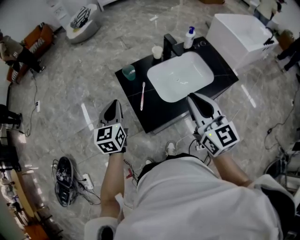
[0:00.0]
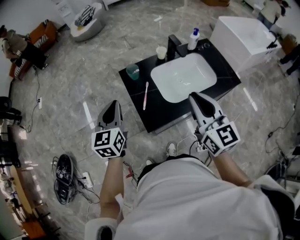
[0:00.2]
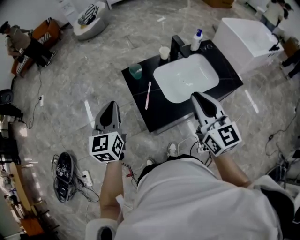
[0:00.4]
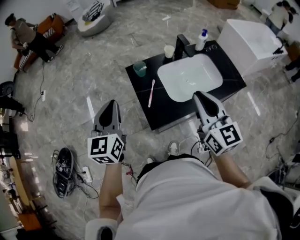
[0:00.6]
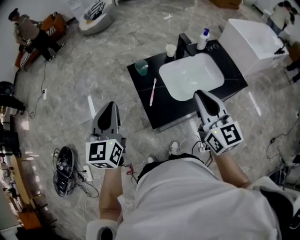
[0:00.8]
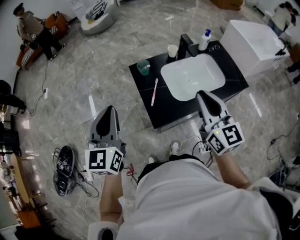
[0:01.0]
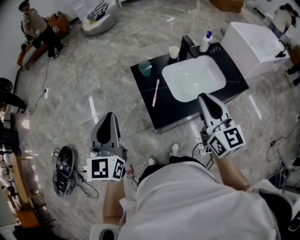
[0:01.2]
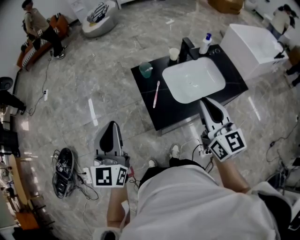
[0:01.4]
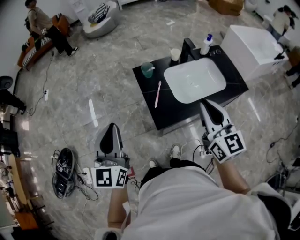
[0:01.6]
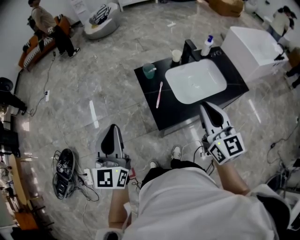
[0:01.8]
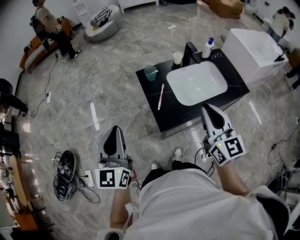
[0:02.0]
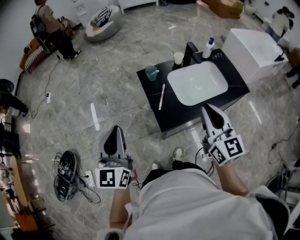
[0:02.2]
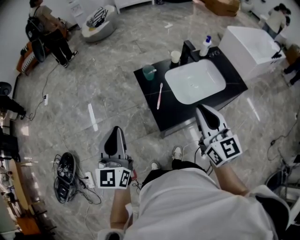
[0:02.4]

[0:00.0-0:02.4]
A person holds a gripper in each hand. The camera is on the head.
0:00.0 to 0:01.2: The left gripper shifts some 15 cm upward, backward and to the left.
0:01.2 to 0:02.4: The right gripper moves roughly 5 cm. The left gripper moves roughly 5 cm.

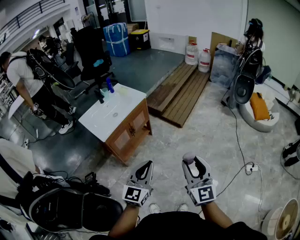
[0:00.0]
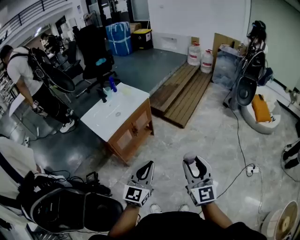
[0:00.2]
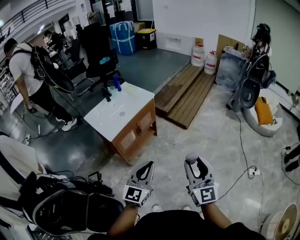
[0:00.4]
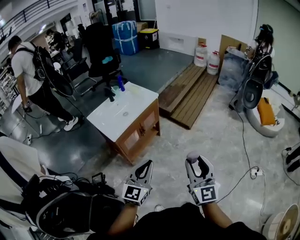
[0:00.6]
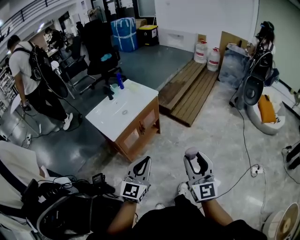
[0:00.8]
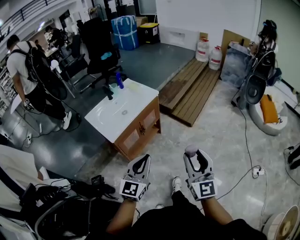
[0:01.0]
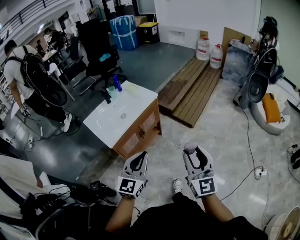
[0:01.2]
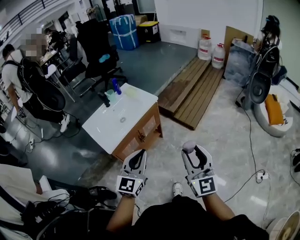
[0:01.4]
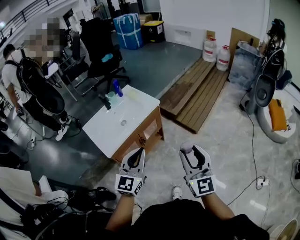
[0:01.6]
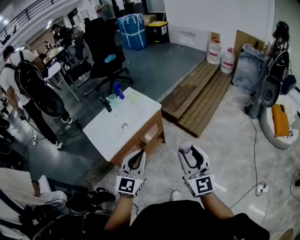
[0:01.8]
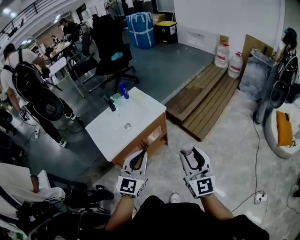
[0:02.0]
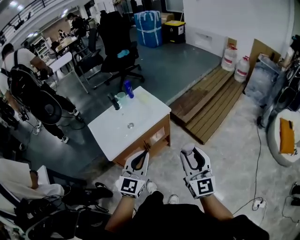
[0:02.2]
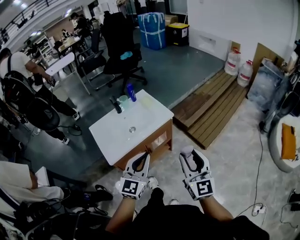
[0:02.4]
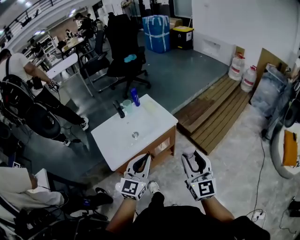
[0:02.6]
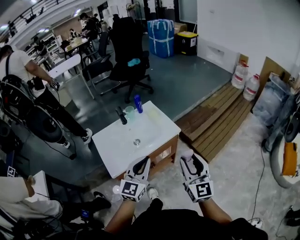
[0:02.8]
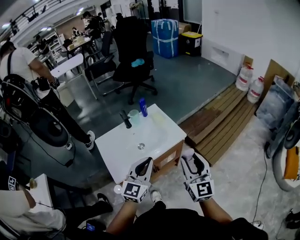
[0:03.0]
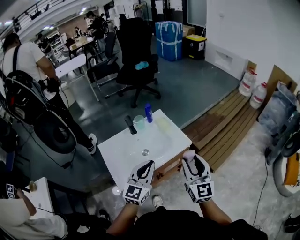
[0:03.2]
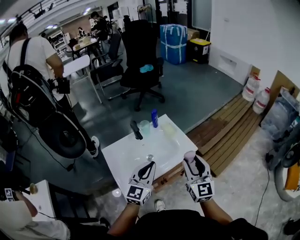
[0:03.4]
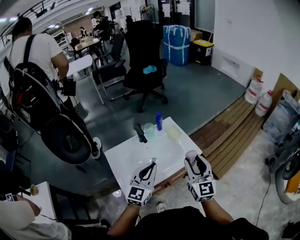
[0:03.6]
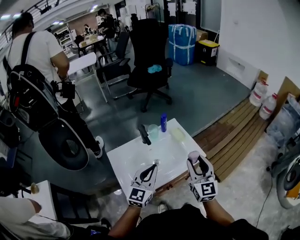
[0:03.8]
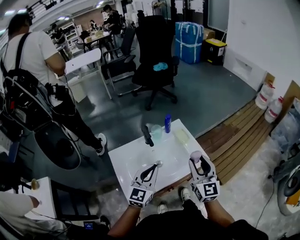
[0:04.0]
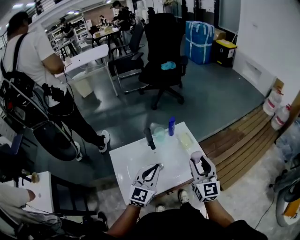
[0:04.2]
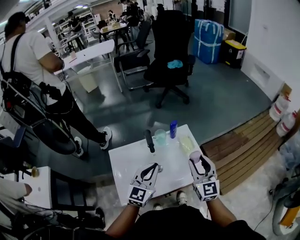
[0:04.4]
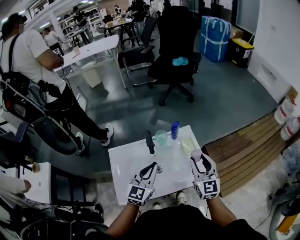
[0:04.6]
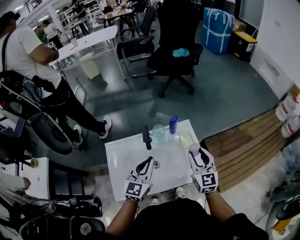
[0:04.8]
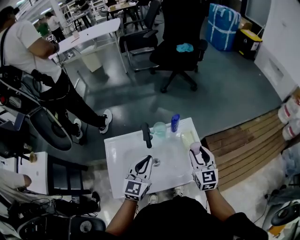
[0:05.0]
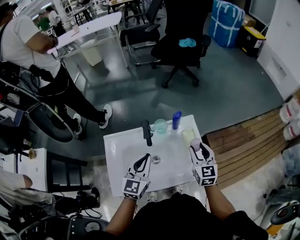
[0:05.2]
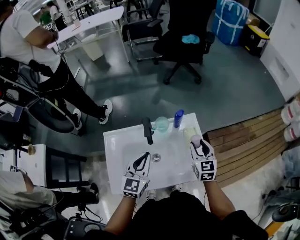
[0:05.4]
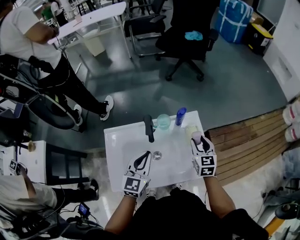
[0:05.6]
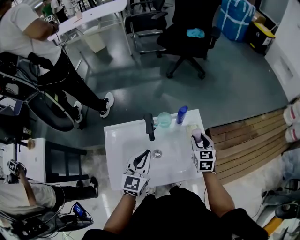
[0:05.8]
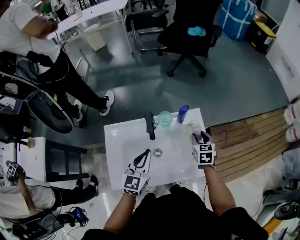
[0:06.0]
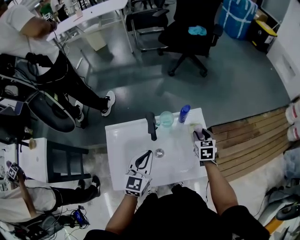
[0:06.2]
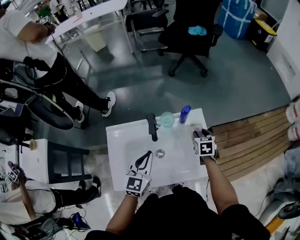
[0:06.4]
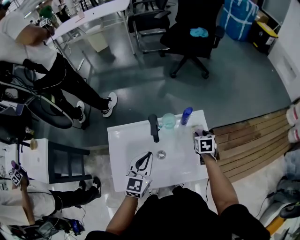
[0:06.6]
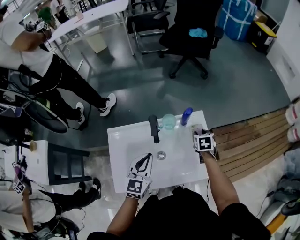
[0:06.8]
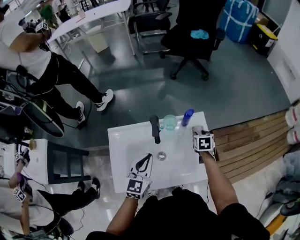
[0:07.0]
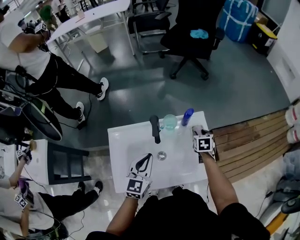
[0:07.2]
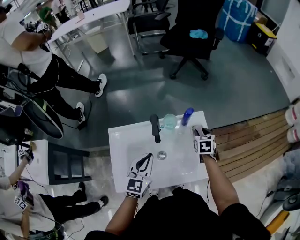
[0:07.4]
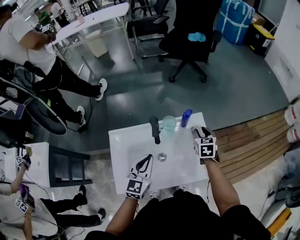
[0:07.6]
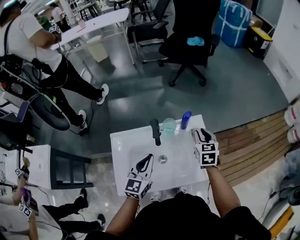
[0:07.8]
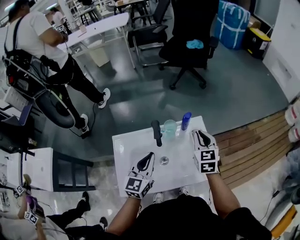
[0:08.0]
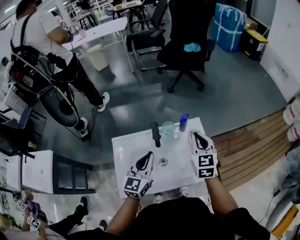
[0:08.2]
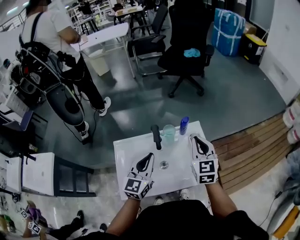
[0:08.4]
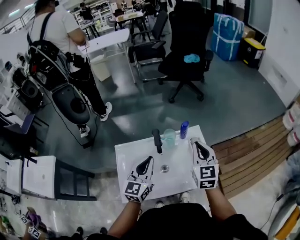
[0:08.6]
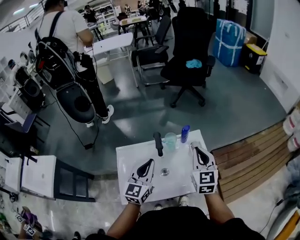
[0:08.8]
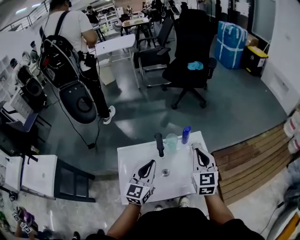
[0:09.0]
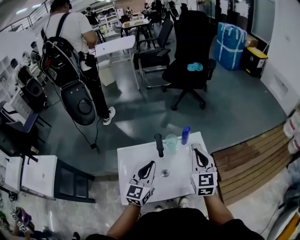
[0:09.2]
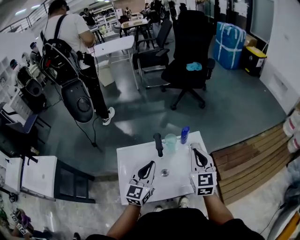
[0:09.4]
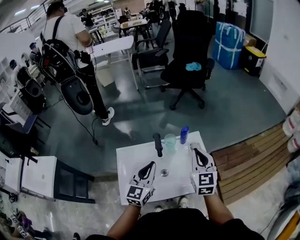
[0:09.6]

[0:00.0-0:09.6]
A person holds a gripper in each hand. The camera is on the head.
0:00.0 to 0:01.6: The grippers both shift forward by some 25 cm.
0:01.6 to 0:03.2: The two grippers go roughly 30 cm forward and to the left.
0:03.2 to 0:04.8: The grippers both shift forward by about 25 cm. The right gripper swivels roughly 20 degrees. Meanwhile the left gripper changes its angle by approximately 20 degrees.
0:04.8 to 0:06.4: The right gripper shifts some 20 cm downward and forward, and angles its fingers downward, by roughly 40 degrees; the left gripper moves downward, approximately 5 cm.
0:06.4 to 0:08.0: The right gripper is displaced upward by some 15 cm, swivels about 20 degrees, and closes. The left gripper shifts roughly 5 cm upward.
0:08.0 to 0:09.6: The right gripper goes about 10 cm upward and backward.

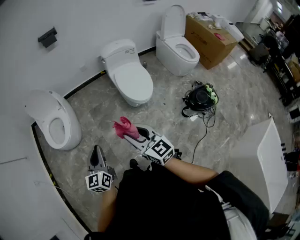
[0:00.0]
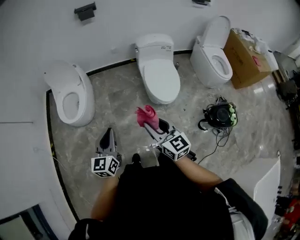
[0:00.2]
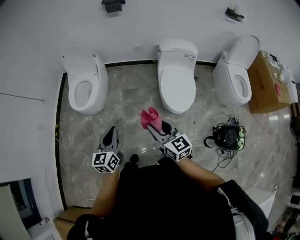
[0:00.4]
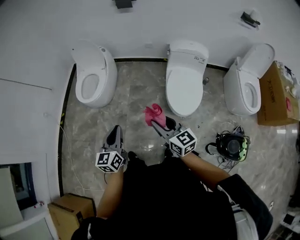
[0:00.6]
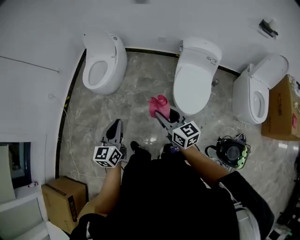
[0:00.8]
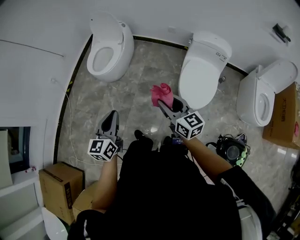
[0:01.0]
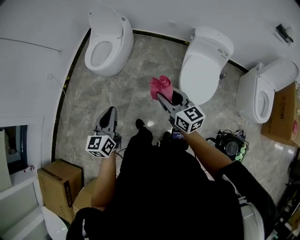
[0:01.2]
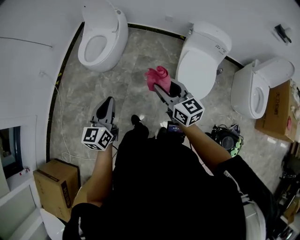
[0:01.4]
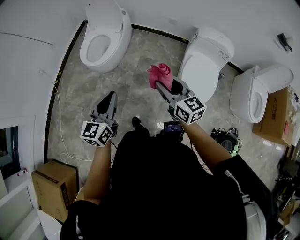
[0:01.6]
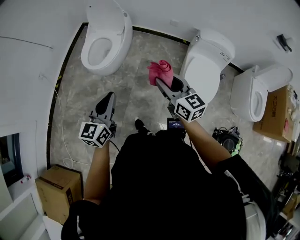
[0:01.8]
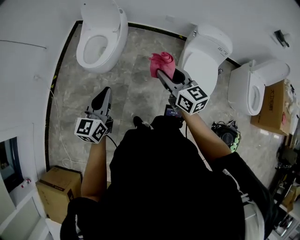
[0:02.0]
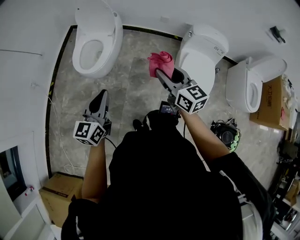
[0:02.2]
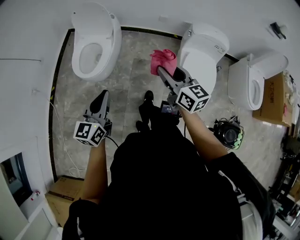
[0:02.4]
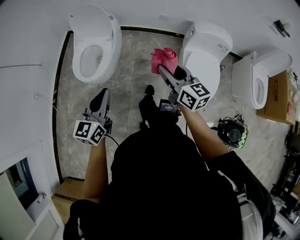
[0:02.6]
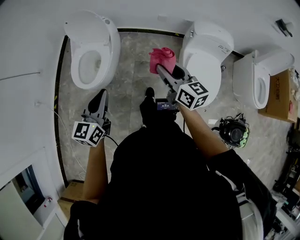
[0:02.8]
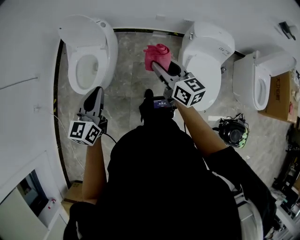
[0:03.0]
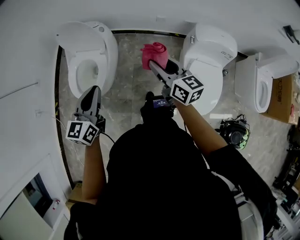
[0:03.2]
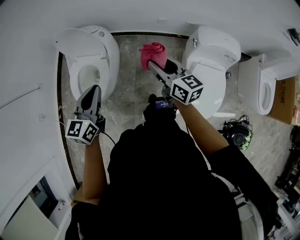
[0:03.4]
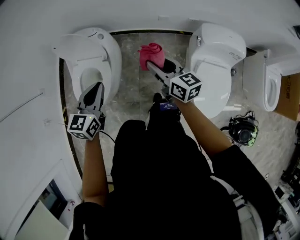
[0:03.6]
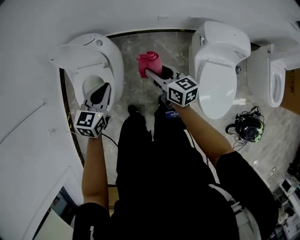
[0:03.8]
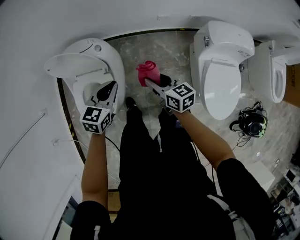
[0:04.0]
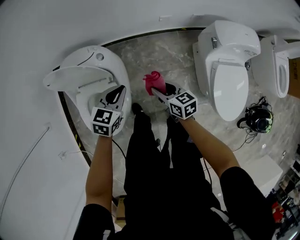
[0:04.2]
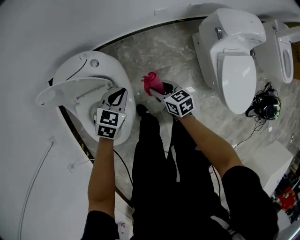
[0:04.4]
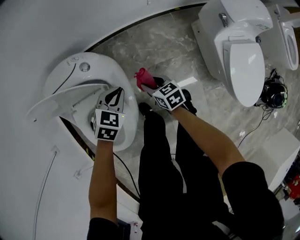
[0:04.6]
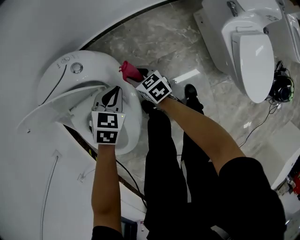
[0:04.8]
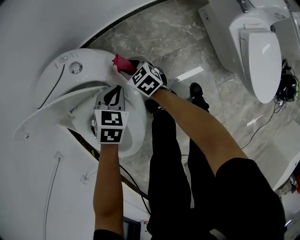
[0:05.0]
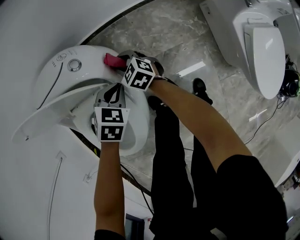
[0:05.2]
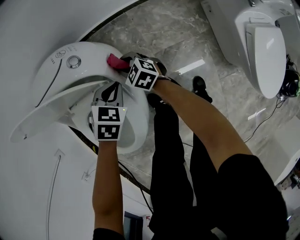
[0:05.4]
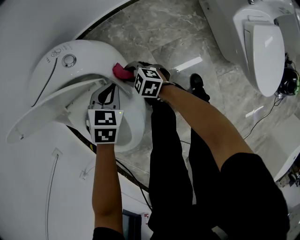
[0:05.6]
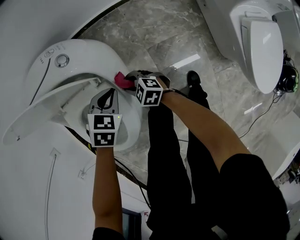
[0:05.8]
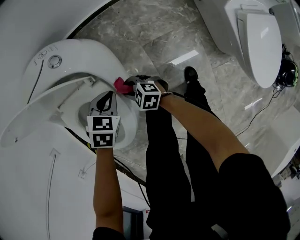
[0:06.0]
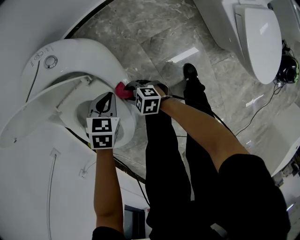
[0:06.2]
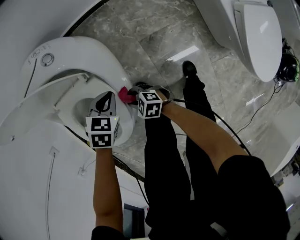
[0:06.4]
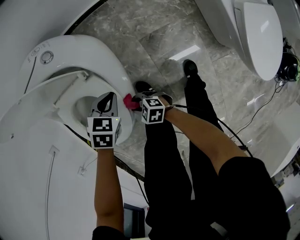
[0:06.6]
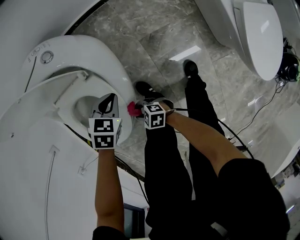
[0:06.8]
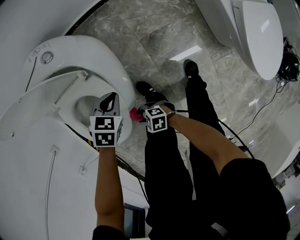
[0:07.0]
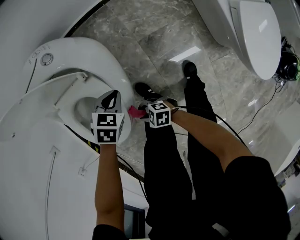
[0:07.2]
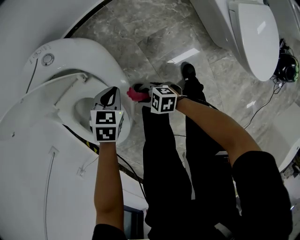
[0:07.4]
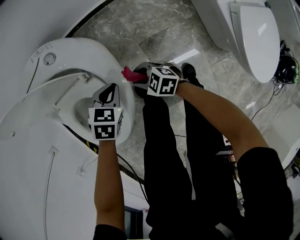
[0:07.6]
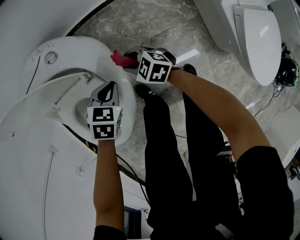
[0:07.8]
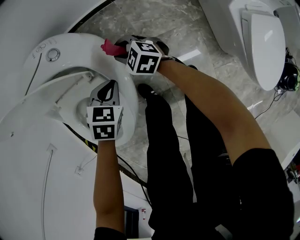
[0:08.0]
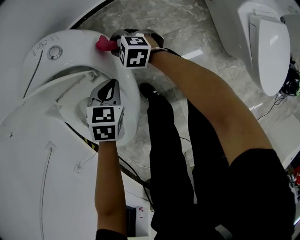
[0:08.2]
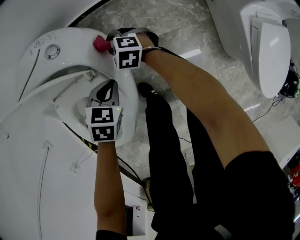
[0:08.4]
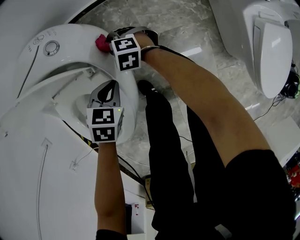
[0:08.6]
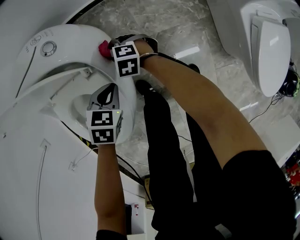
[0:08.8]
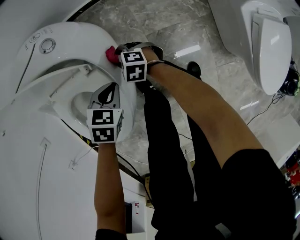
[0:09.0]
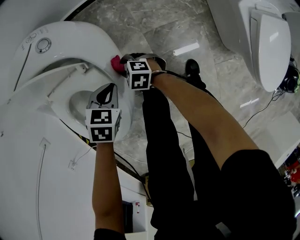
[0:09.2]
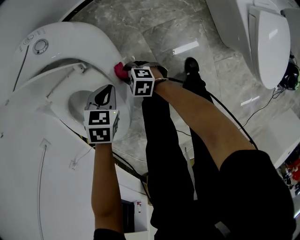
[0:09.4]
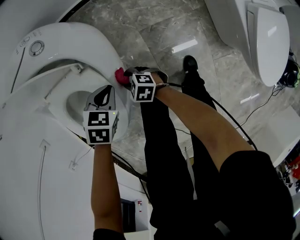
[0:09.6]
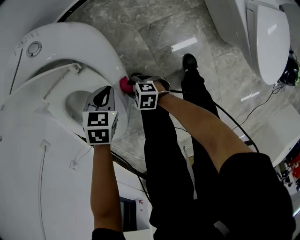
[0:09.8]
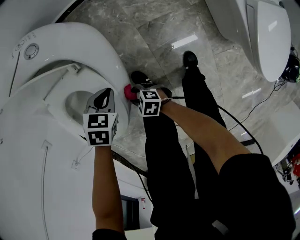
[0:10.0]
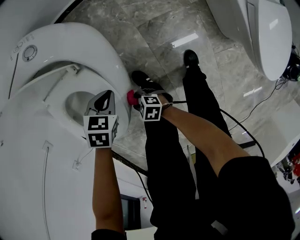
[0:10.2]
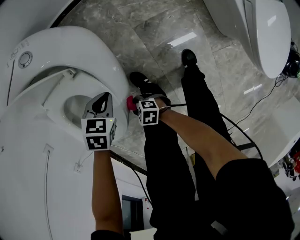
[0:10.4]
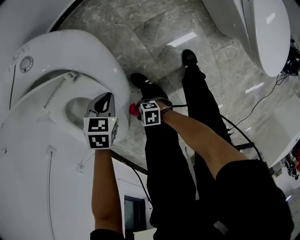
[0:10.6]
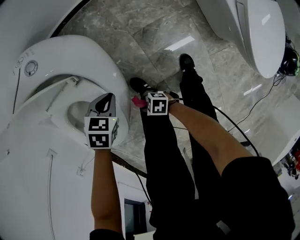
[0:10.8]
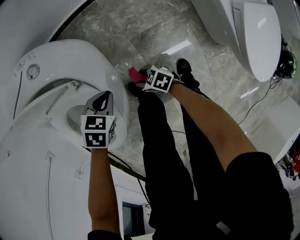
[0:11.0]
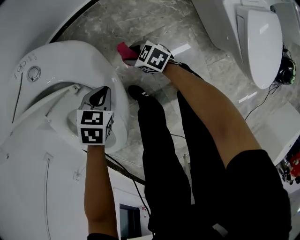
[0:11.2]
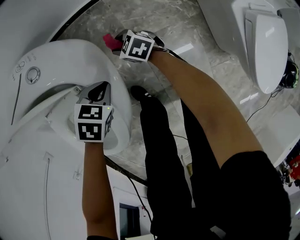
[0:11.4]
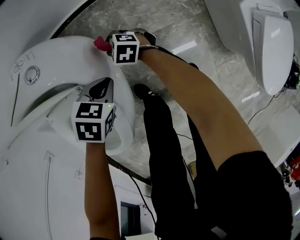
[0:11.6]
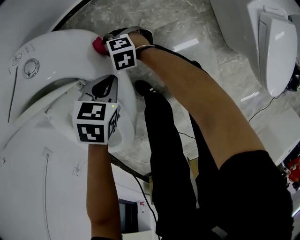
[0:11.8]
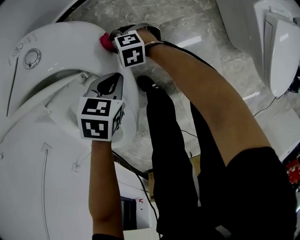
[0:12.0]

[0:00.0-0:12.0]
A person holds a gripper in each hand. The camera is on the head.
0:00.0 to 0:01.6: The right gripper moves approximately 25 cm, and rotates approximately 30 degrees. Meanwhile the left gripper changes place by some 15 cm.
0:01.6 to 0:03.0: The grippers both shift forward by about 25 cm.
0:03.0 to 0:04.4: The right gripper is displaced downward and forward by approximately 40 cm, and changes its angle by approximately 30 degrees. Meanwhile the left gripper is displaced forward and downward by roughly 40 cm, and points its fingers roughly 40 degrees further downward.
0:04.4 to 0:06.0: The two grippers go about 20 cm downward. The right gripper turns by about 40 degrees.
0:07.6 to 0:09.0: The right gripper moves some 15 cm, and changes its angle by approximately 20 degrees.
0:09.0 to 0:10.4: The left gripper ends up roughly 5 cm from where it was. Meanwhile the right gripper shifts by roughly 30 cm, and changes its angle by approximately 30 degrees.
0:10.4 to 0:12.0: The right gripper changes place by about 35 cm, and turns by some 30 degrees. The left gripper moves about 10 cm.
